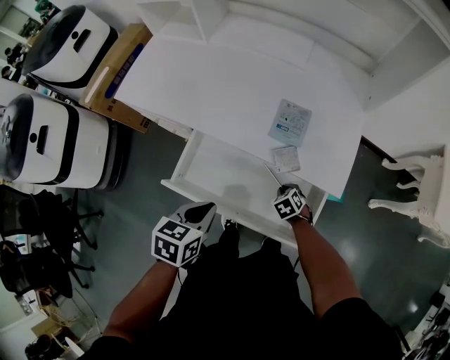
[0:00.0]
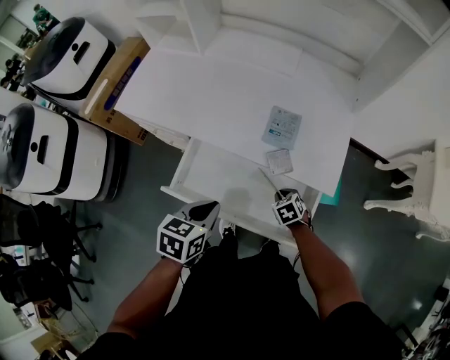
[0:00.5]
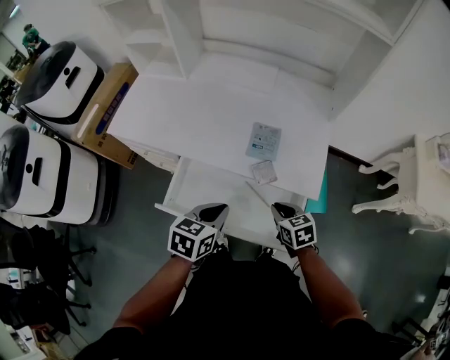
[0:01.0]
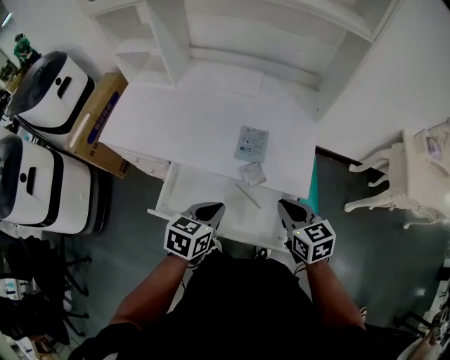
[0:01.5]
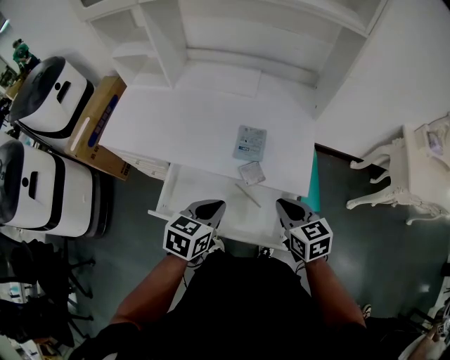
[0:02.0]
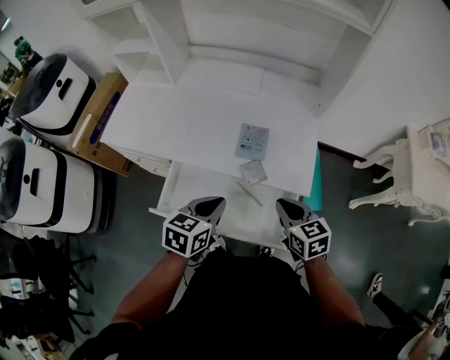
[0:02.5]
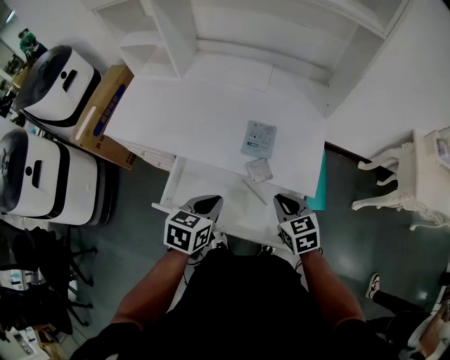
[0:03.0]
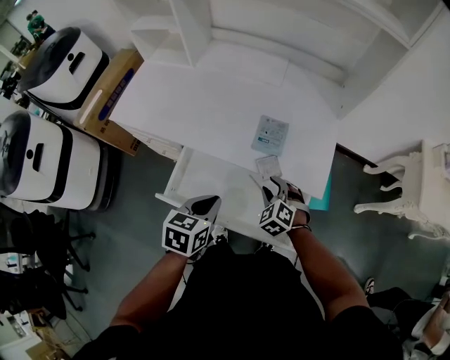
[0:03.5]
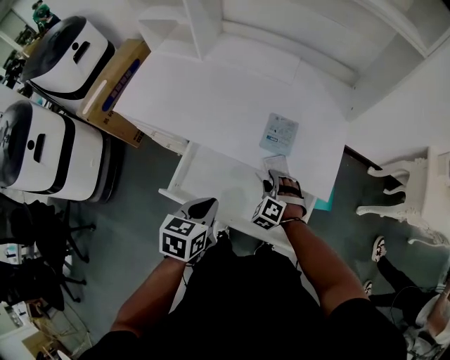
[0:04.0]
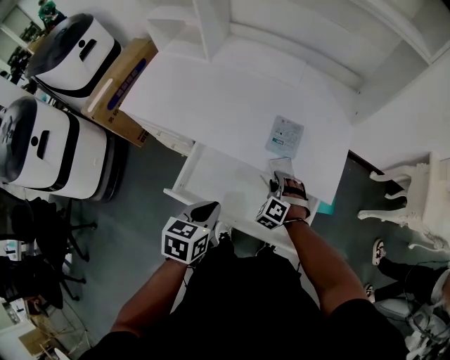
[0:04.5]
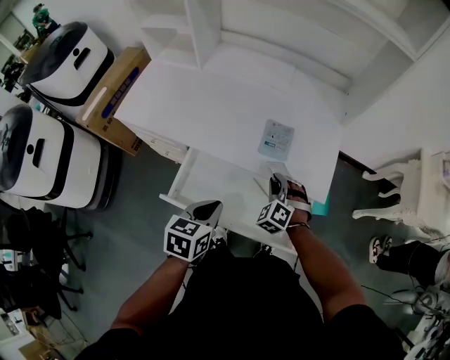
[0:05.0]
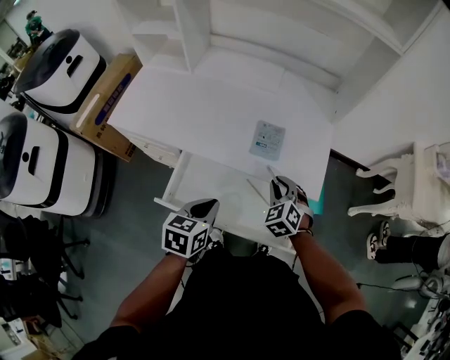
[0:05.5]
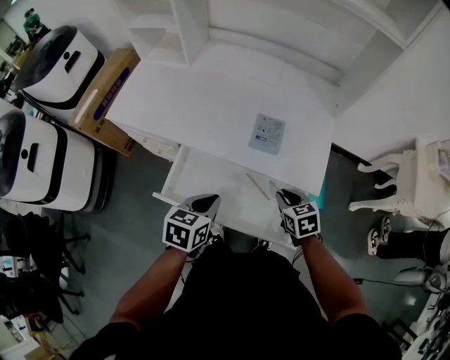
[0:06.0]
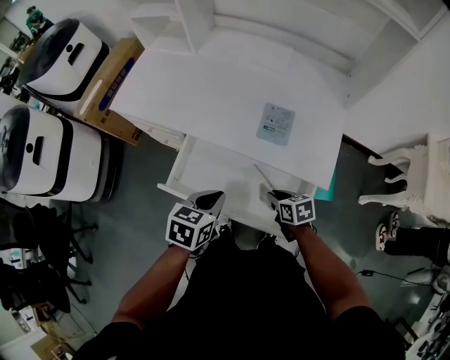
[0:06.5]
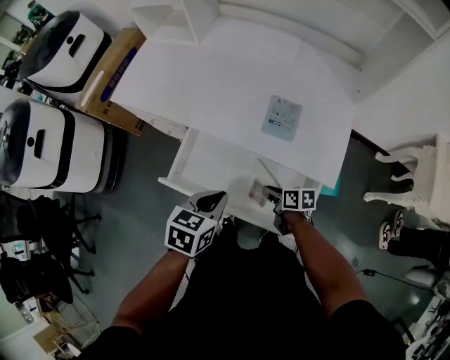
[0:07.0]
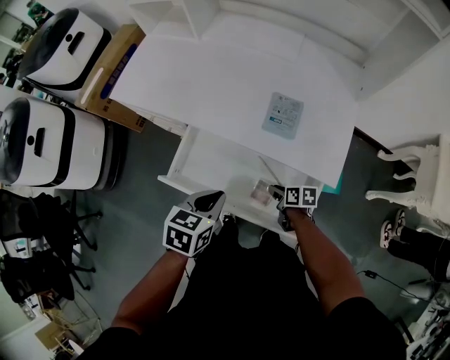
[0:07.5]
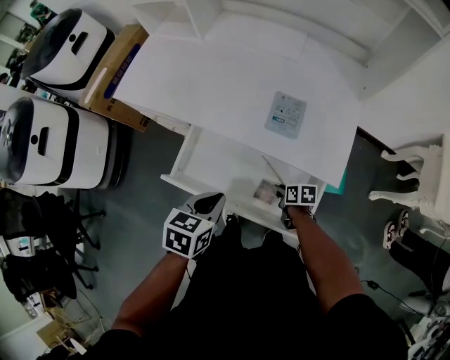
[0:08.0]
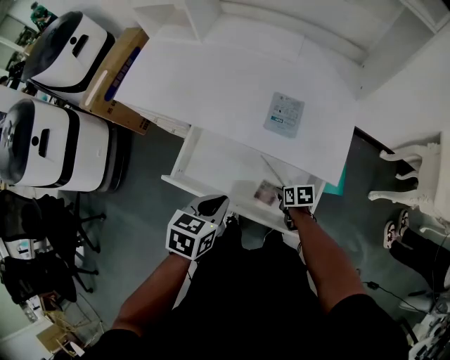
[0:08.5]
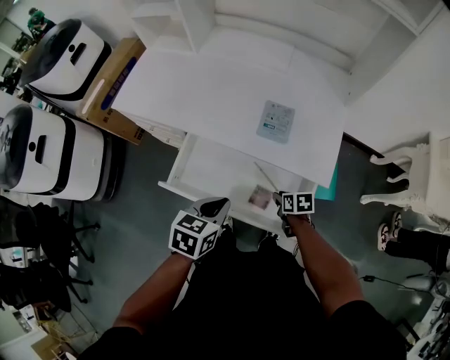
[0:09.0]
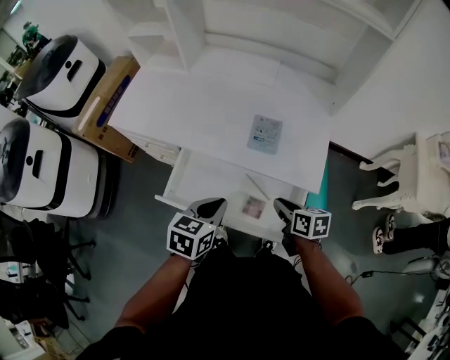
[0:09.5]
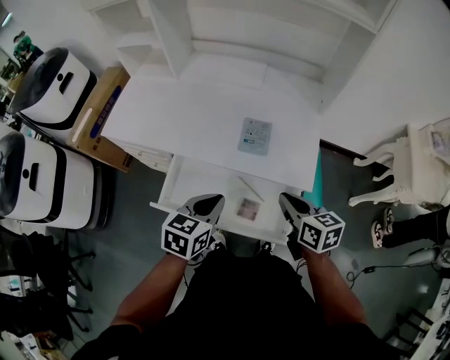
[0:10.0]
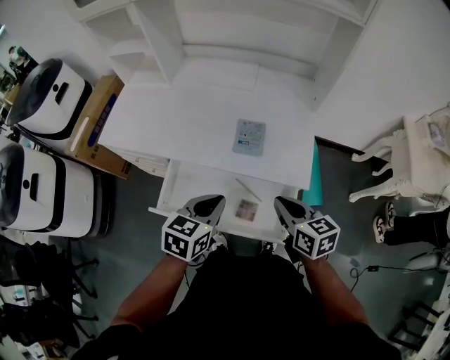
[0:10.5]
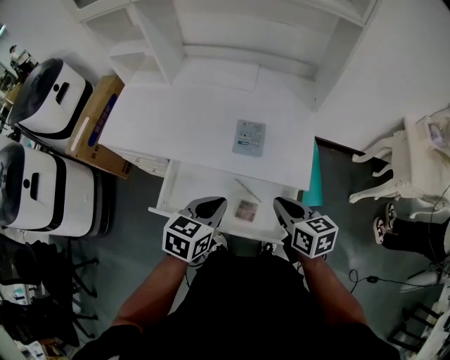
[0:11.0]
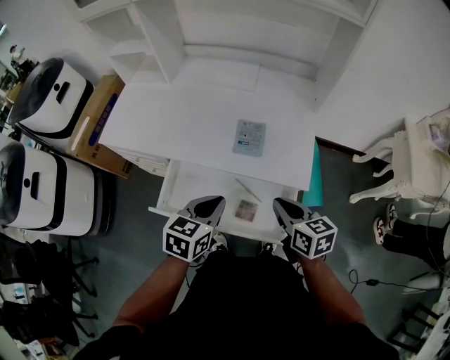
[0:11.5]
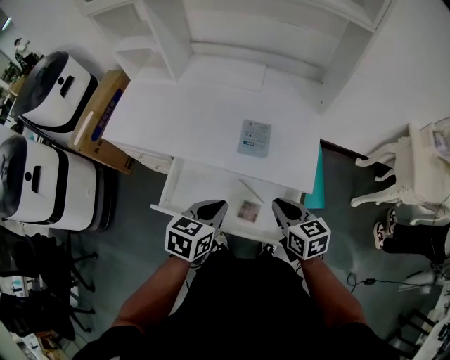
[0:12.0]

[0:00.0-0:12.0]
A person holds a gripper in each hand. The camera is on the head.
0:00.0 to 0:02.0: The left gripper shifts approximately 10 cm to the right and upward, while the right gripper moves upward, roughly 30 cm, and points its fingers some 40 degrees further upward.
0:02.0 to 0:04.0: The right gripper travels downward and to the left by some 20 cm, rotates around the line of its fingers by about 60 degrees, counterclockwise from behind, and opens up. Meanwhile the left gripper is displaced to the left by some 10 cm.
0:04.0 to 0:06.0: The right gripper is displaced to the right and upward by some 10 cm, rotates around the line of its fingers by some 60 degrees, clockwise from behind, and closes its fingers.
0:06.0 to 0:08.0: The right gripper moves downward, approximately 20 cm, and swivels some 40 degrees.
0:08.0 to 0:10.0: The right gripper shifts some 30 cm upward, and rotates roughly 40 degrees. Meanwhile the left gripper is displaced upward by approximately 5 cm.
0:10.0 to 0:12.0: The grippers make only small movements.

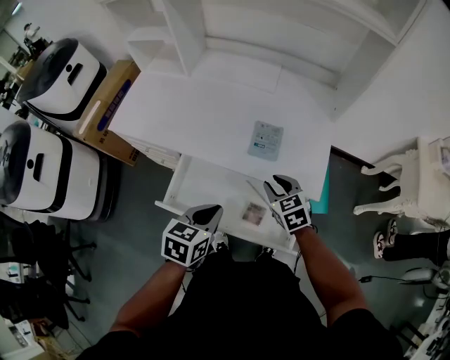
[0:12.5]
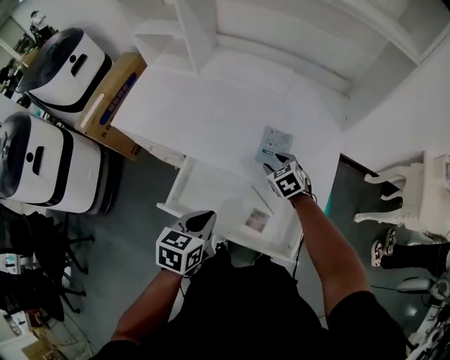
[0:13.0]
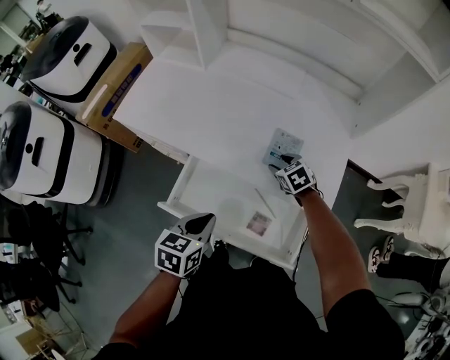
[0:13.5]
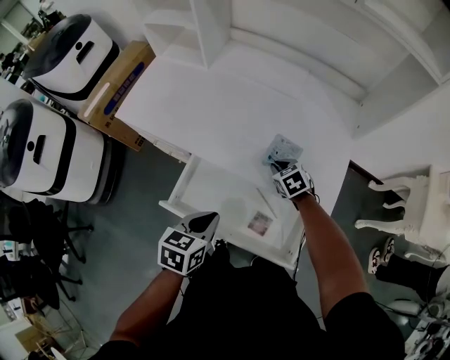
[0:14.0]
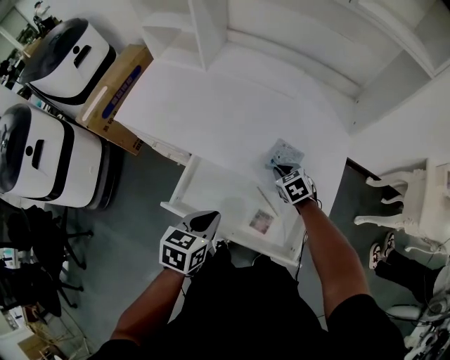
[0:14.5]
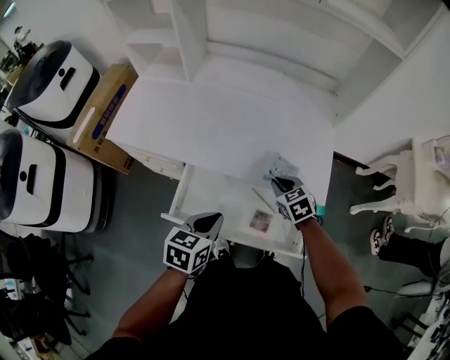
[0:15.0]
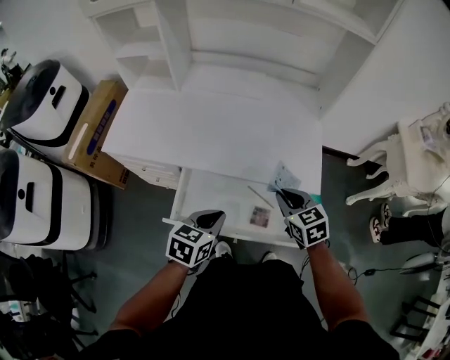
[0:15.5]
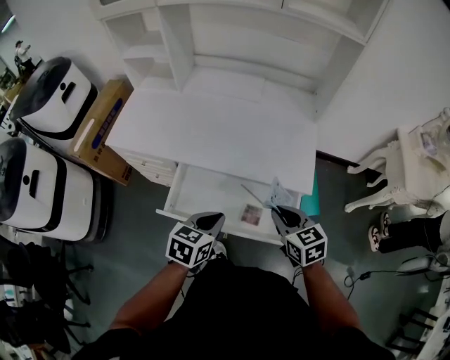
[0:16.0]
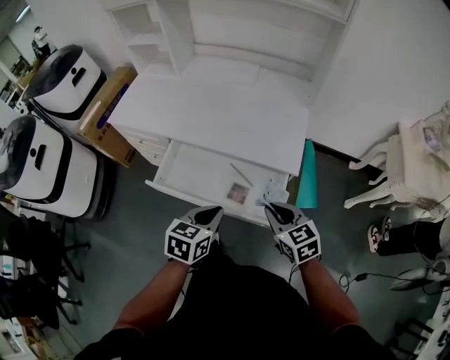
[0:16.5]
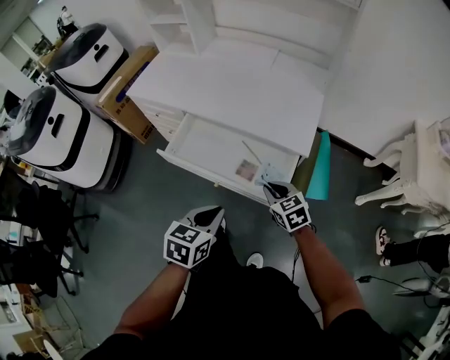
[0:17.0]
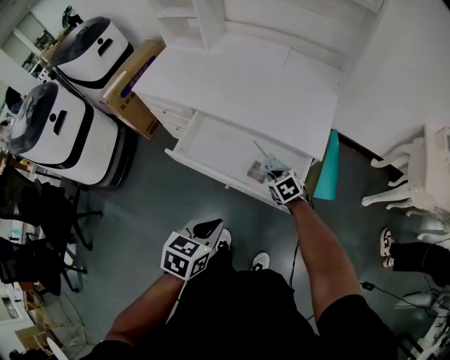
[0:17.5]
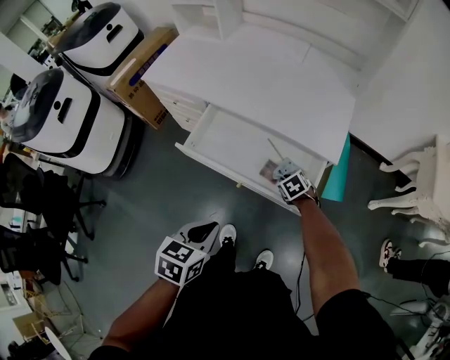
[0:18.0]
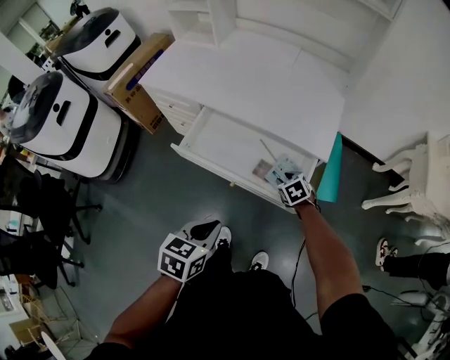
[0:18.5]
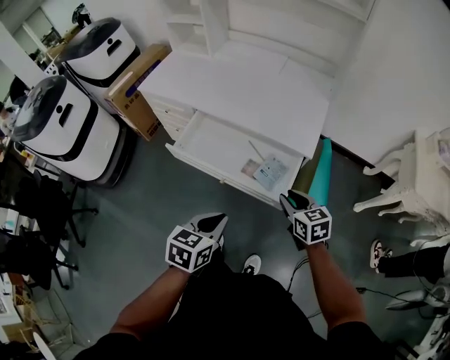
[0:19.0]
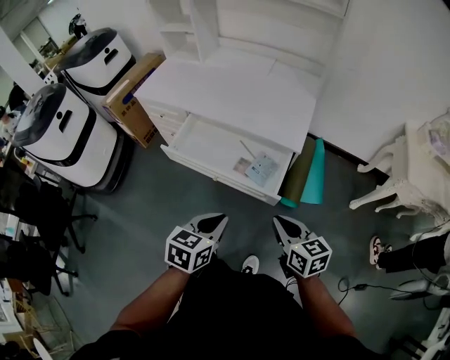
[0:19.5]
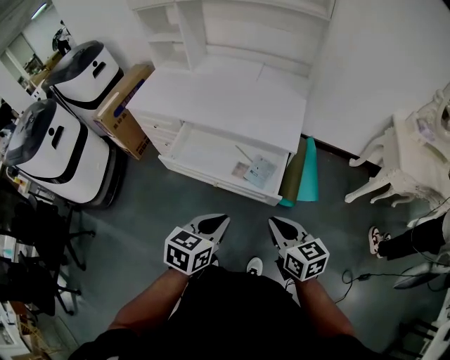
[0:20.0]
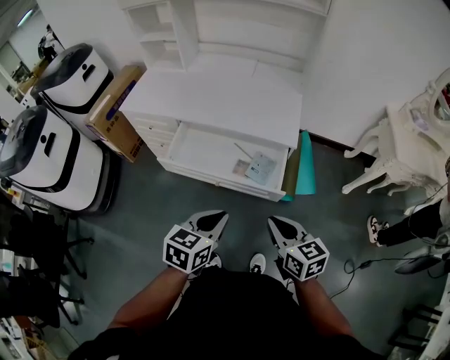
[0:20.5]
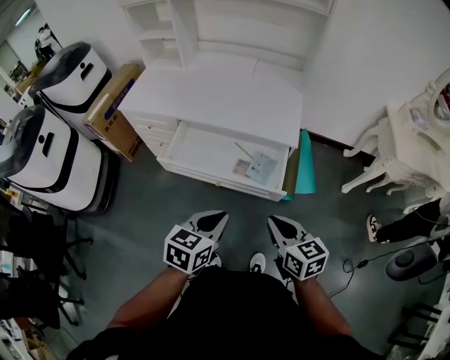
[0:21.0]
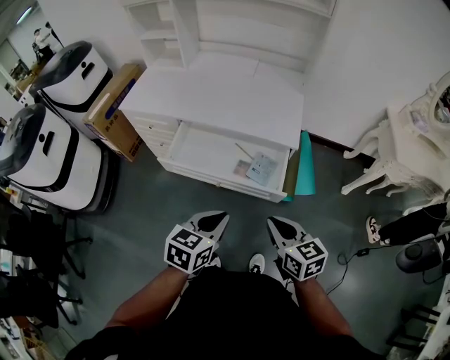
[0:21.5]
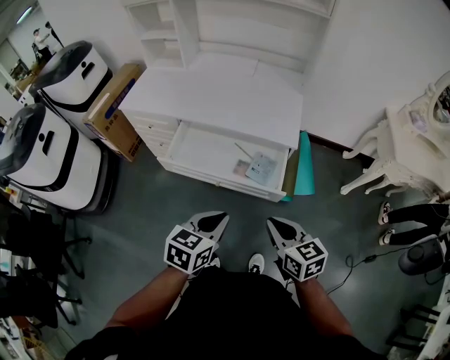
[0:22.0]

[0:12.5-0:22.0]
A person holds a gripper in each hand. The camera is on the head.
0:12.5 to 0:14.5: The left gripper shifts by about 5 cm. The right gripper goes some 15 cm forward and downward, and opens, then closes once more.
0:14.5 to 0:16.5: The right gripper is displaced backward, upward and to the right by approximately 35 cm, and swivels approximately 30 degrees. Meanwhile the left gripper moves to the right and backward, some 20 cm.
0:16.5 to 0:18.0: The left gripper goes about 15 cm backward and to the left. Meanwhile the right gripper travels downward by roughly 25 cm, and points its fingers roughly 30 degrees further downward.
0:18.0 to 0:20.0: The left gripper travels to the right, upward and backward by approximately 15 cm; the right gripper goes approximately 40 cm upward and backward, and points its fingers some 40 degrees further upward.
0:20.0 to 0:22.0: The grippers stay close to where they were, moving slightly.

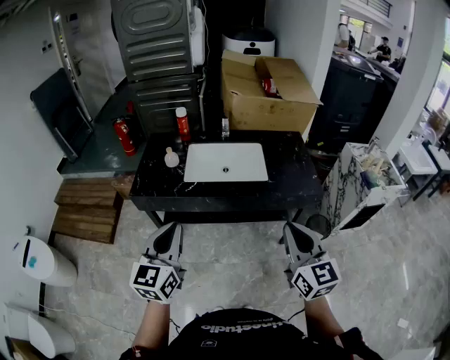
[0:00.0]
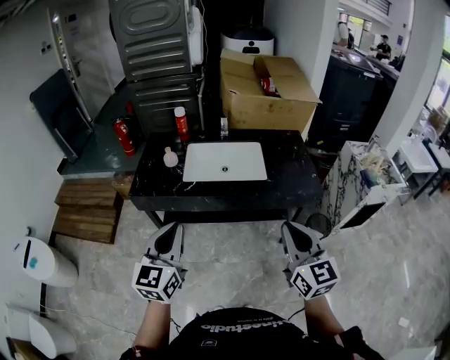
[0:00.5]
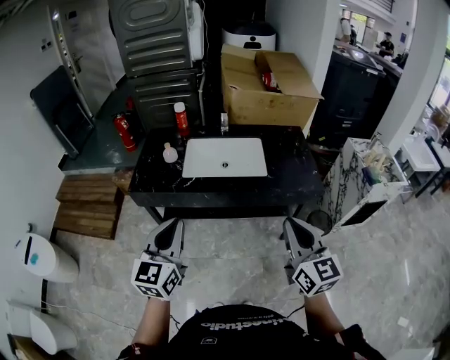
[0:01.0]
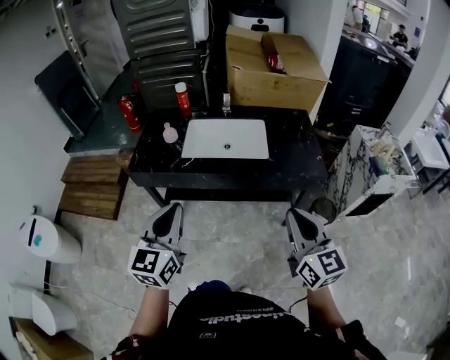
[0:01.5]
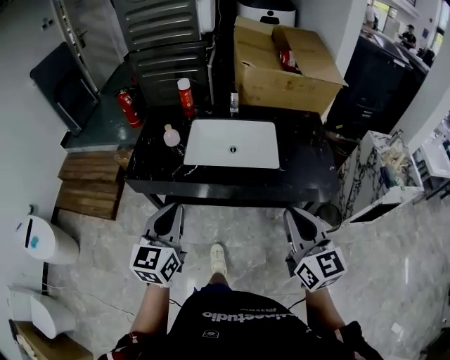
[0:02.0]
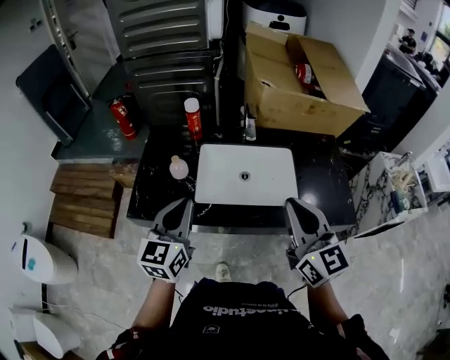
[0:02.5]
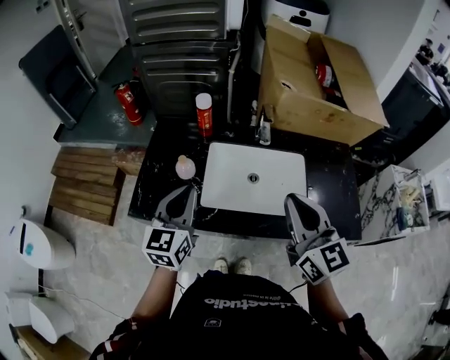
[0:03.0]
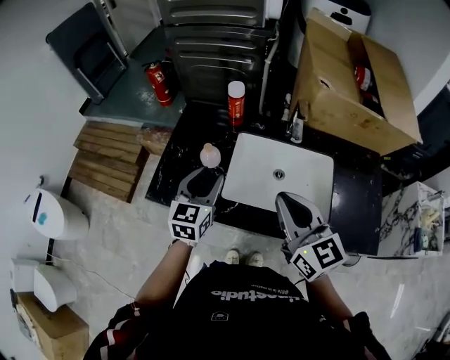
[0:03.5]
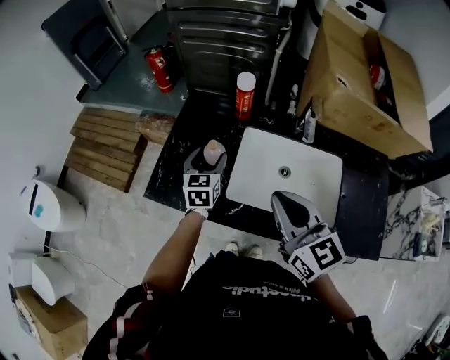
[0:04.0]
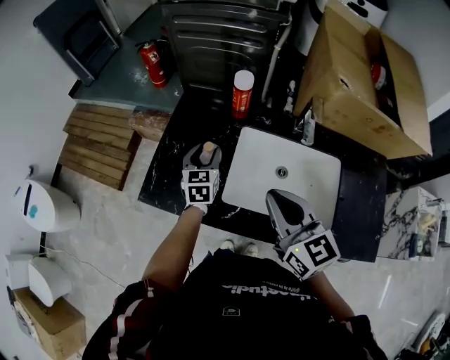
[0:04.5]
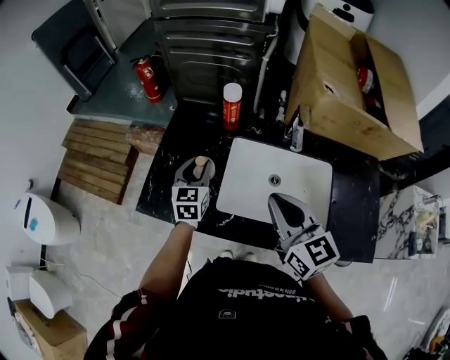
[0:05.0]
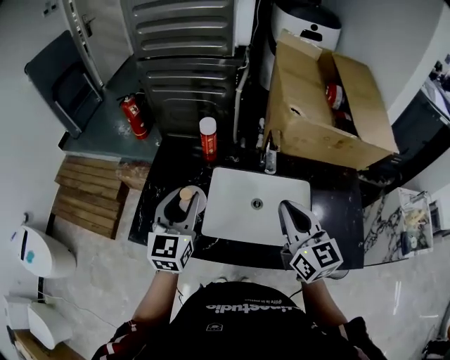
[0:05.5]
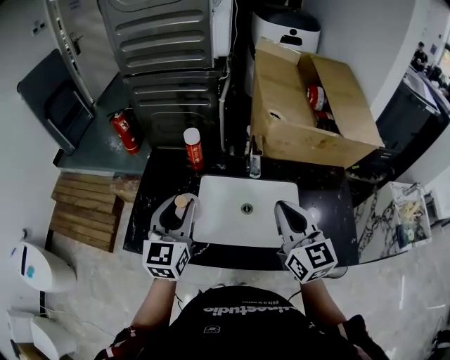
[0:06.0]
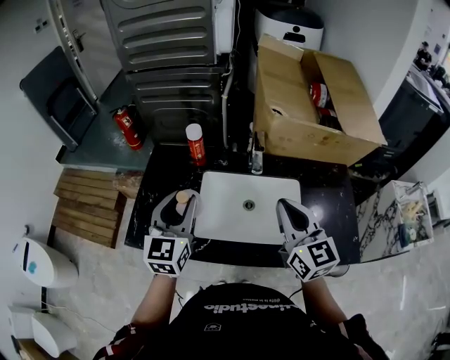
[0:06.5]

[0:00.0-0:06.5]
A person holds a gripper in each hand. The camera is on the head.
0:00.0 to 0:02.0: The left gripper travels forward and downward by roughly 10 cm. Meanwhile the right gripper shifts approximately 10 cm forward.
0:02.0 to 0:04.5: Both grippers are carried forward, about 40 cm. The right gripper turns by roughly 20 degrees; the left gripper heads downward, covering roughly 20 cm, swivels about 20 degrees, and opens its fingers.
0:04.5 to 0:06.5: The right gripper is displaced to the right and upward by some 15 cm. Meanwhile the left gripper moves upward and backward, roughly 25 cm, and changes its angle by roughly 20 degrees.
